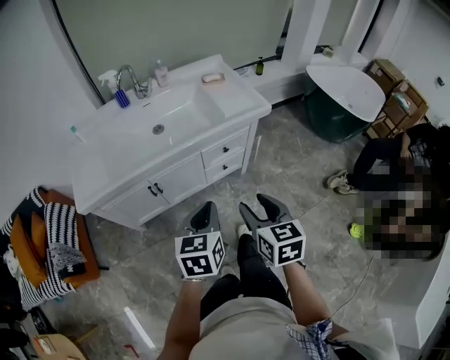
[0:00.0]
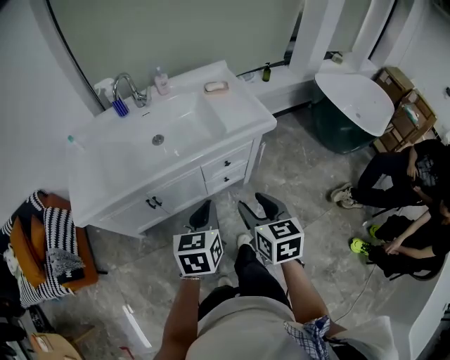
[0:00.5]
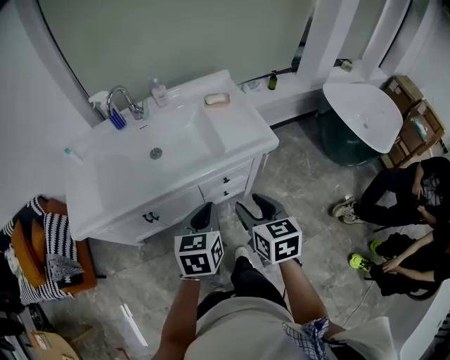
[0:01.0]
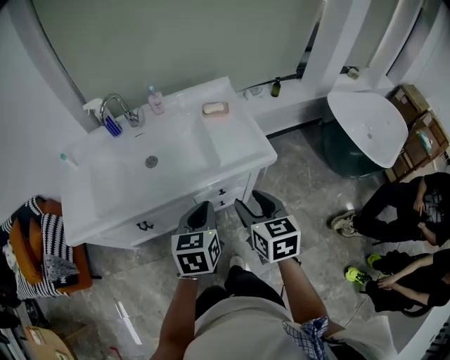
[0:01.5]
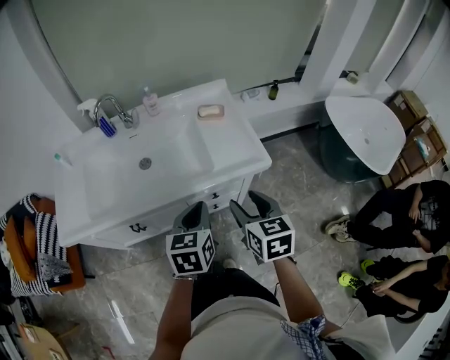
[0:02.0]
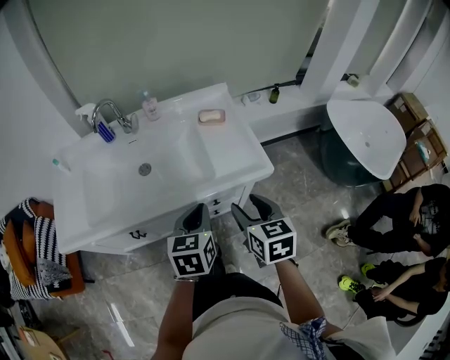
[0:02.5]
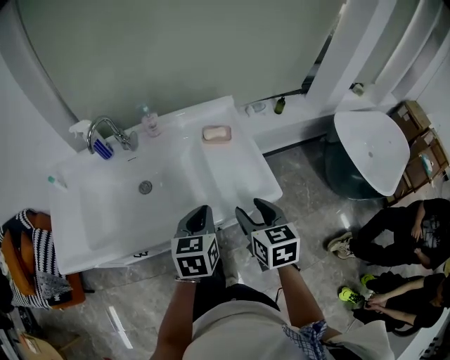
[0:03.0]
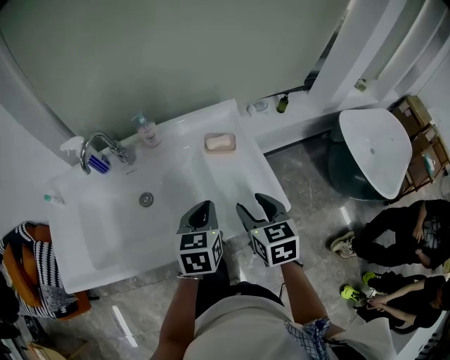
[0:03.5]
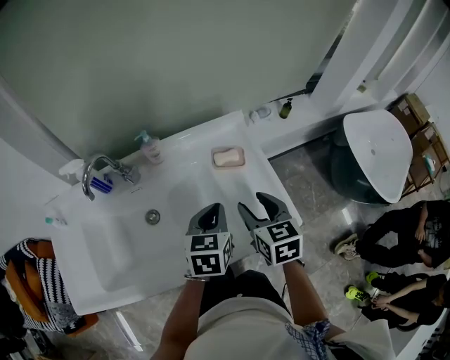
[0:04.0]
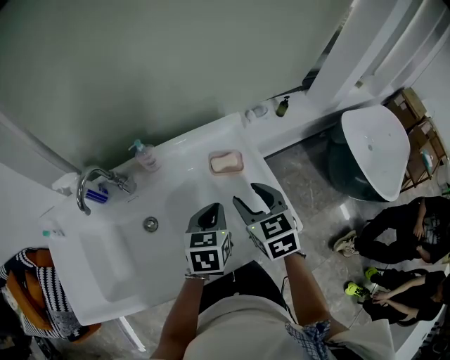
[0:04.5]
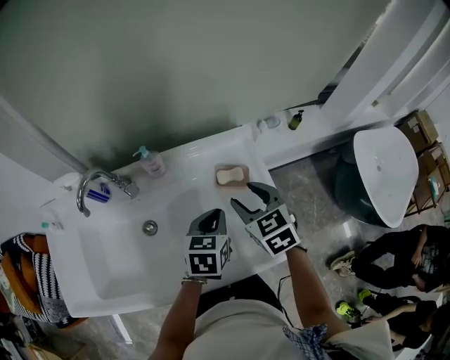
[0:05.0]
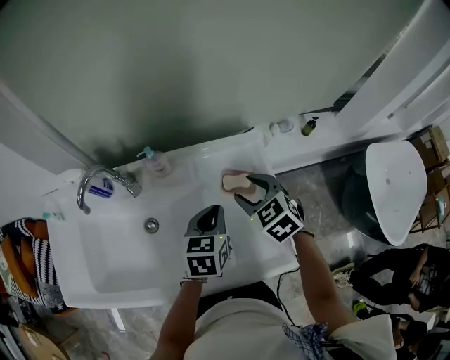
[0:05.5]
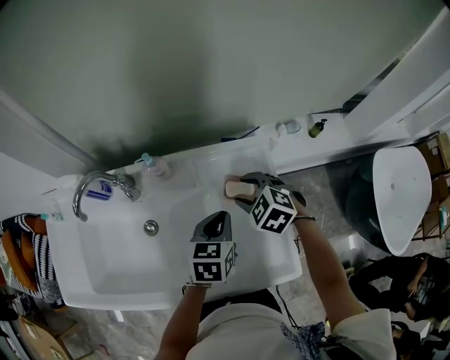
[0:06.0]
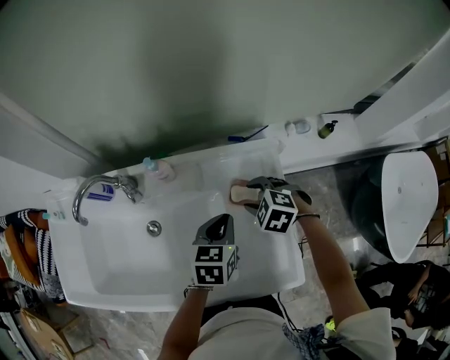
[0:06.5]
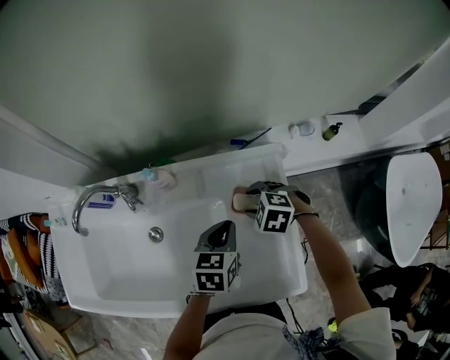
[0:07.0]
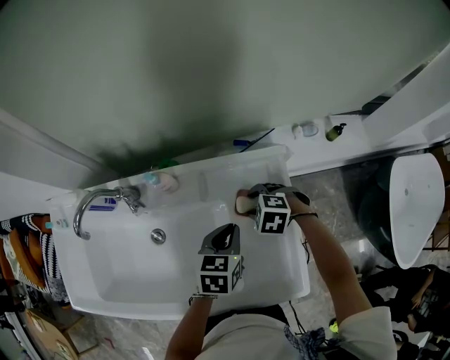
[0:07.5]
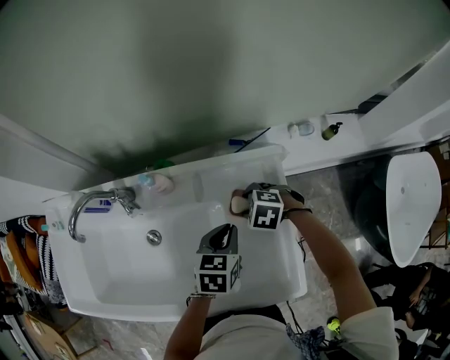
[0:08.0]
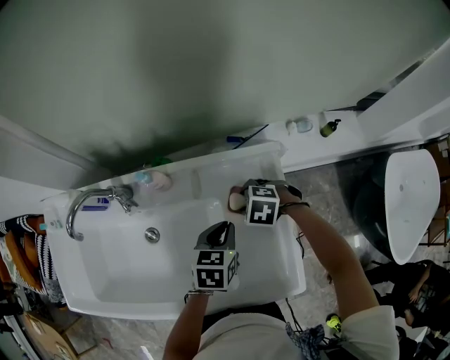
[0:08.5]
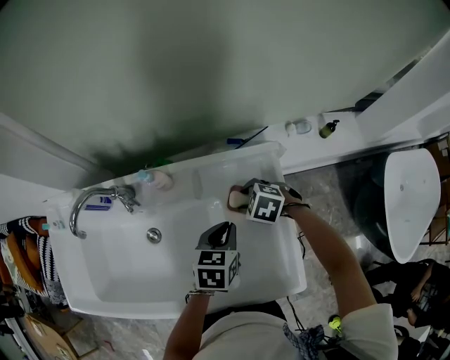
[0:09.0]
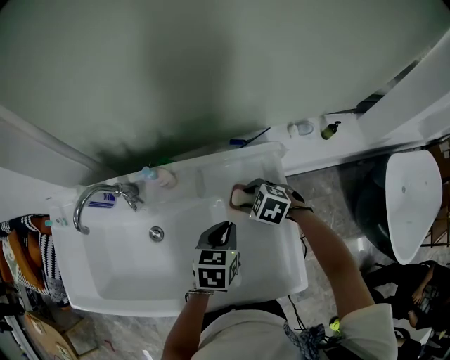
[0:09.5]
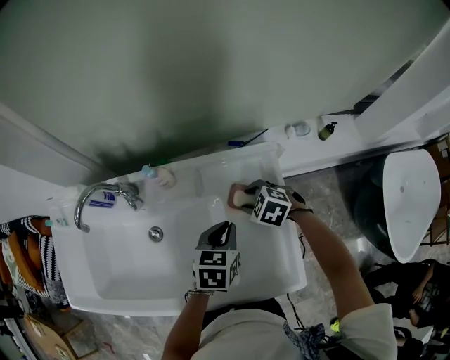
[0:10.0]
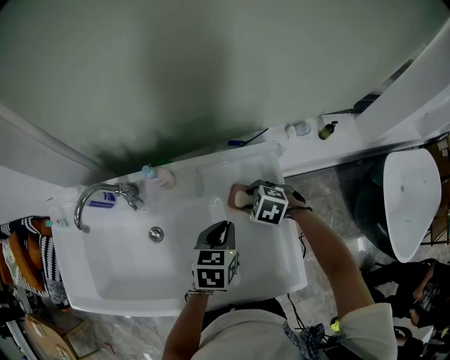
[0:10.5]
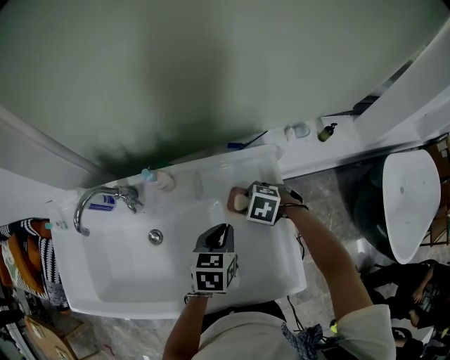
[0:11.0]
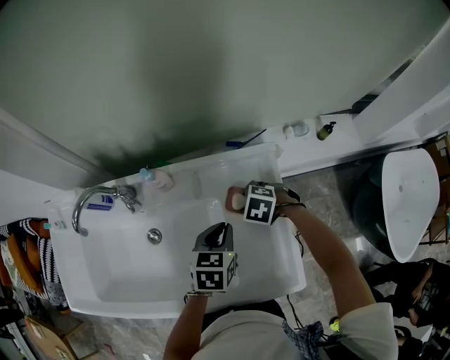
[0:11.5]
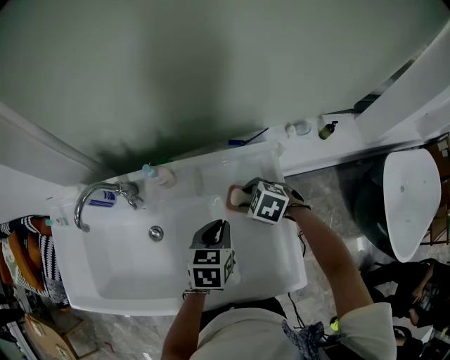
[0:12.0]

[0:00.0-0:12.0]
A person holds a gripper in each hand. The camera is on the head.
0:00.0 to 0:02.0: The right gripper goes roughly 25 cm forward. The left gripper is displaced forward and to the right by some 25 cm.
0:02.0 to 0:04.0: The grippers both shift forward by about 25 cm.
0:04.0 to 0:06.0: The left gripper shifts about 10 cm forward. Meanwhile the right gripper shifts about 20 cm forward and downward, and rolls counterclockwise, seen from behind, by about 50 degrees.
0:06.0 to 0:08.0: The right gripper shifts roughly 10 cm downward, and turns by about 20 degrees; the left gripper ends up roughly 5 cm from where it was.
0:08.0 to 0:12.0: The grippers move only a little.

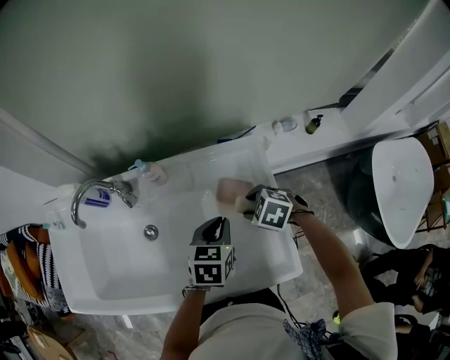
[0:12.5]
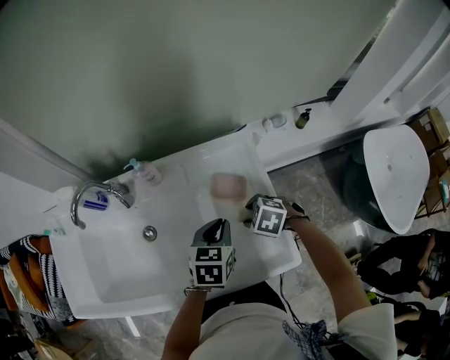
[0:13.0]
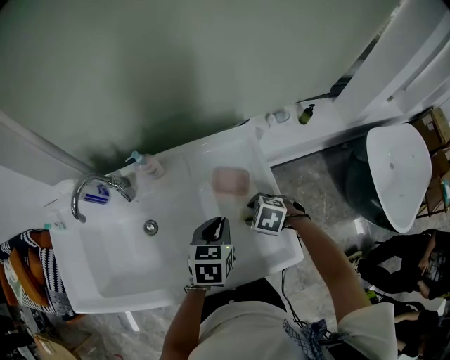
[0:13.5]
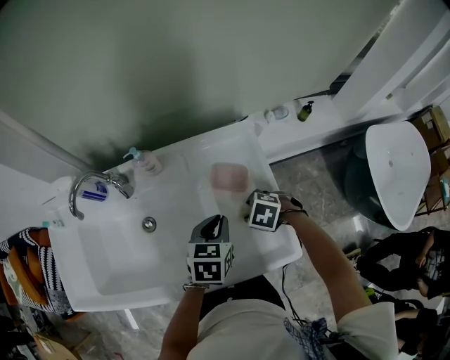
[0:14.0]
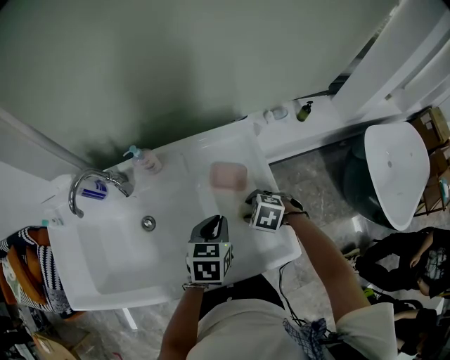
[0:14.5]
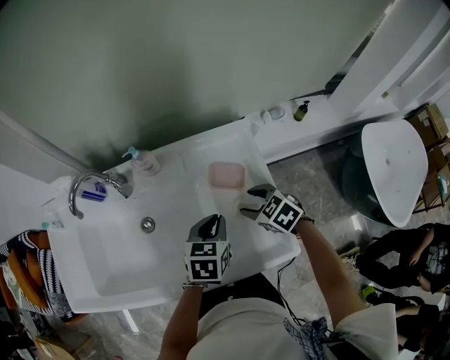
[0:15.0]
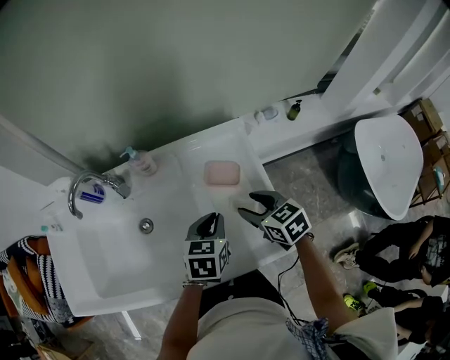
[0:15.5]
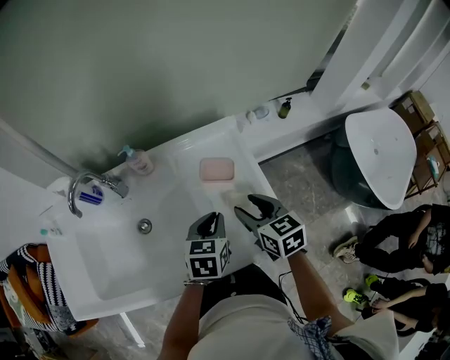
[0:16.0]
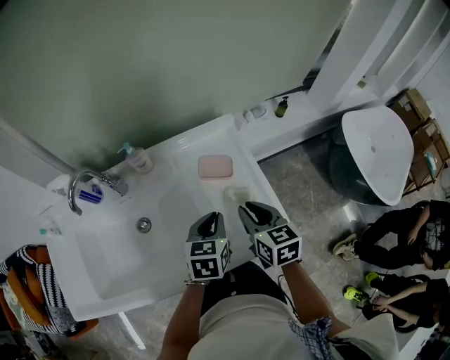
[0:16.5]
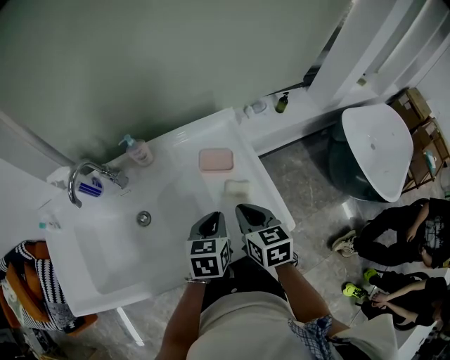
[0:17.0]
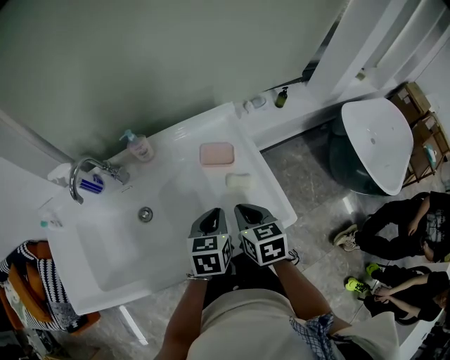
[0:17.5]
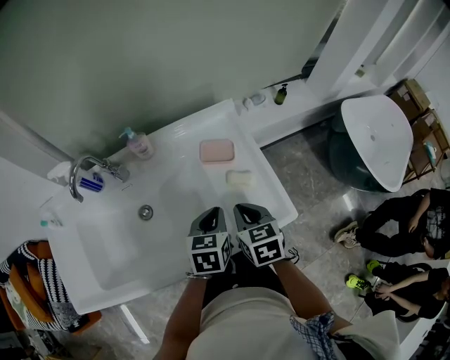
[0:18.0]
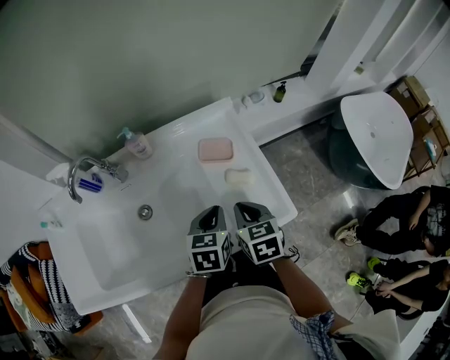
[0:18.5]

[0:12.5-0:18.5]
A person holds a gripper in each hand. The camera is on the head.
0:12.5 to 0:14.5: The right gripper moves backward, about 5 cm.
0:14.5 to 0:16.5: The right gripper heads upward, covering some 15 cm, angles its fingers upward, by some 40 degrees, and closes its fingers.
0:16.5 to 0:18.5: The right gripper changes place by approximately 5 cm, and closes.

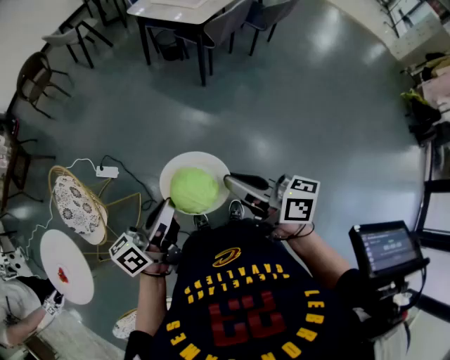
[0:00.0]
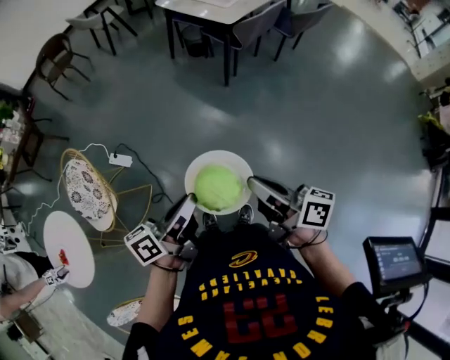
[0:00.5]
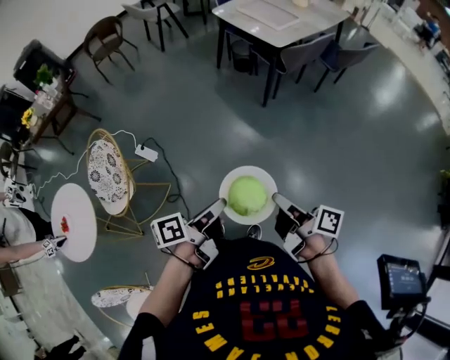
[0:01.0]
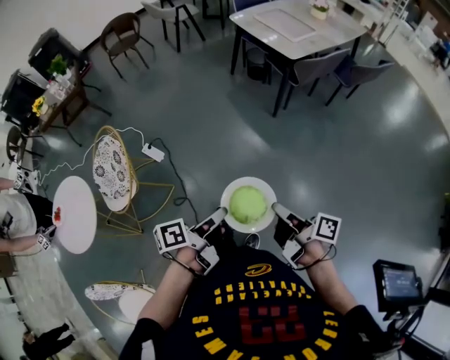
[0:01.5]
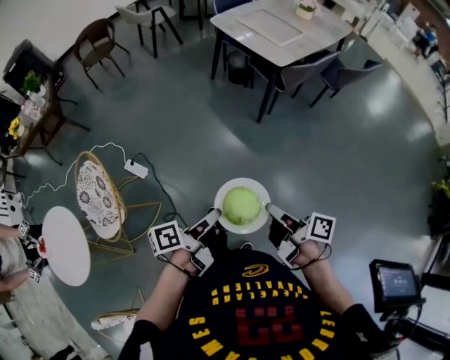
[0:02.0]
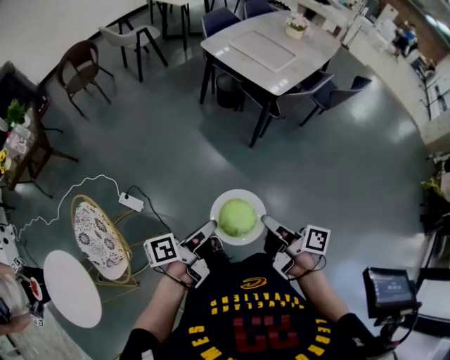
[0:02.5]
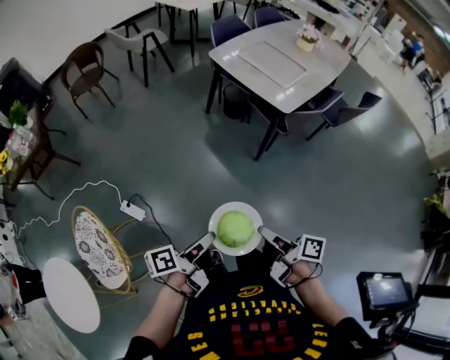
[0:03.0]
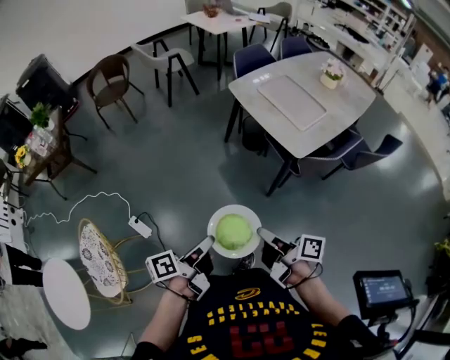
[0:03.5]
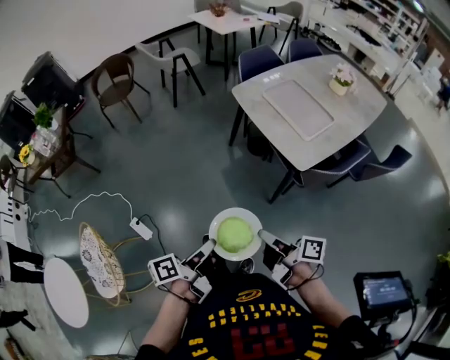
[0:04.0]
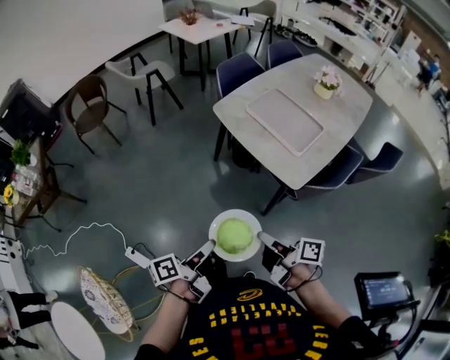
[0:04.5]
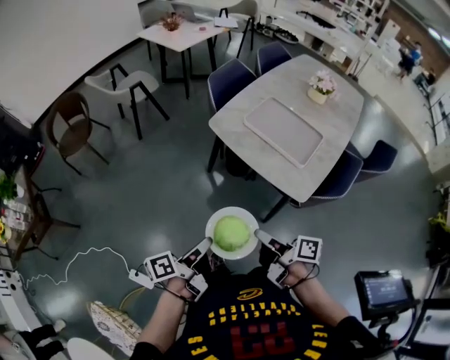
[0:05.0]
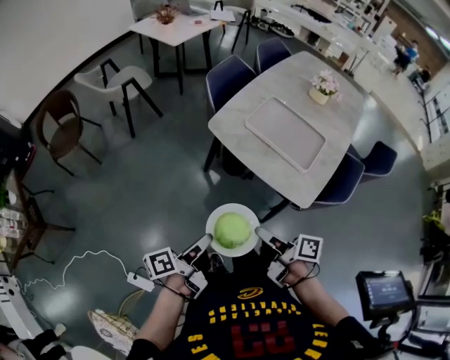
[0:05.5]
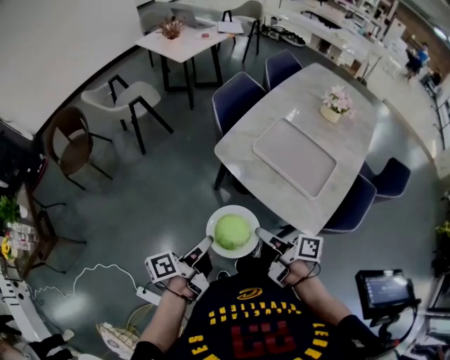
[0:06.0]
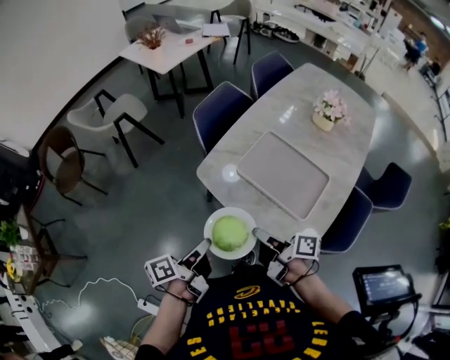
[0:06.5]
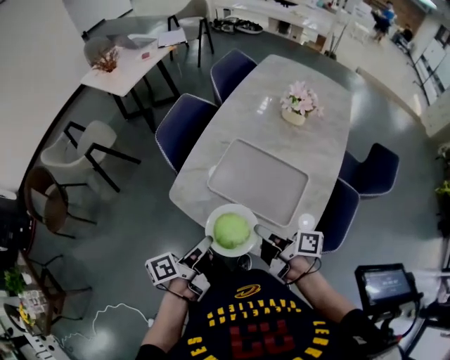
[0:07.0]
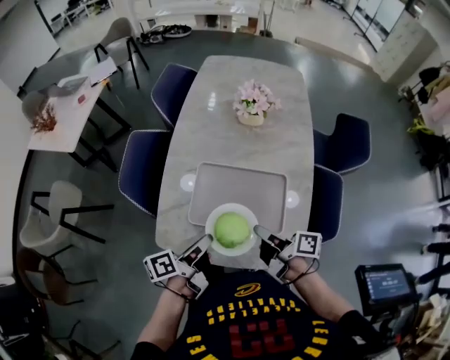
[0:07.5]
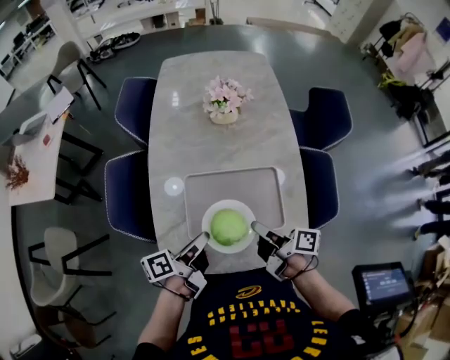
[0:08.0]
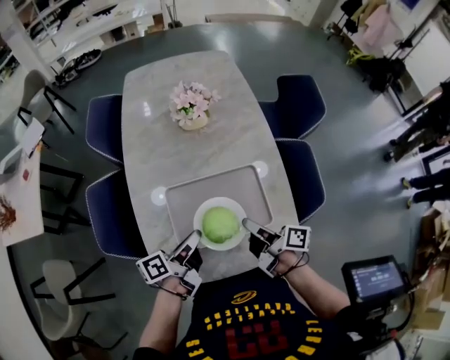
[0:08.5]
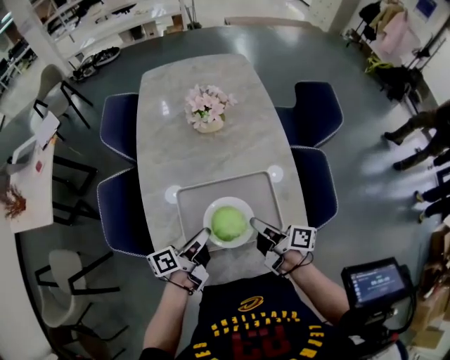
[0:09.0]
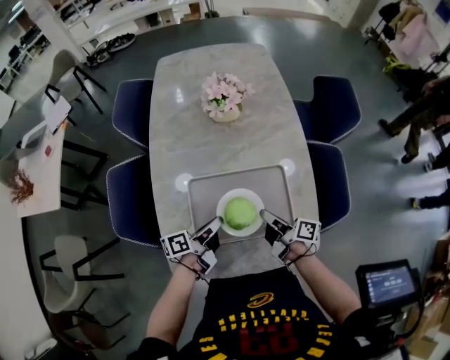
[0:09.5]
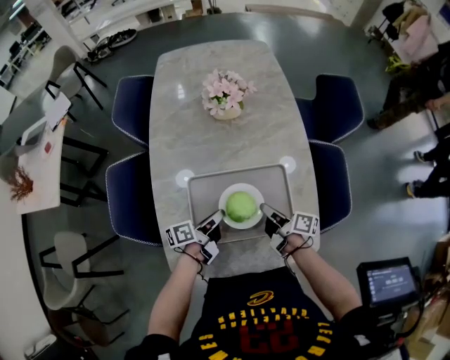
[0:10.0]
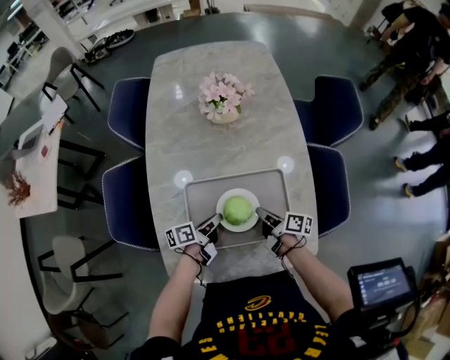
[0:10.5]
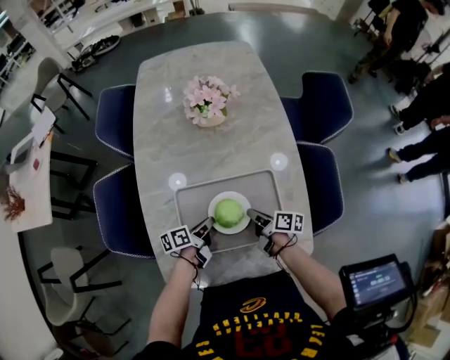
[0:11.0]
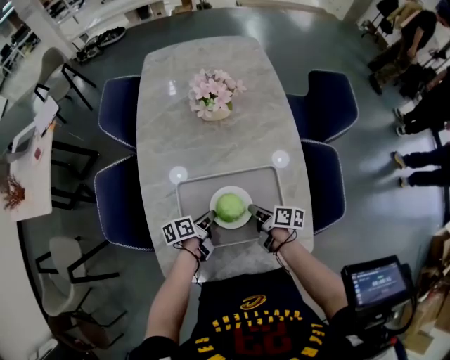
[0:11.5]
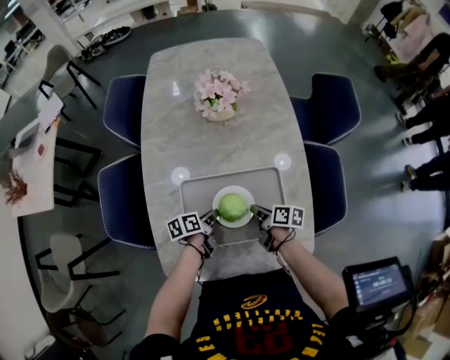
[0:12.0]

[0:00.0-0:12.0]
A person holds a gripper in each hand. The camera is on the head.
0:00.0 to 0:02.0: The right gripper moves roughly 20 cm, and turns by approximately 30 degrees.
0:02.0 to 0:04.0: The right gripper moves approximately 40 cm.
0:04.0 to 0:06.0: The right gripper moves some 40 cm.
0:06.0 to 0:08.0: The right gripper ends up about 35 cm from where it was, and swivels approximately 50 degrees.
0:08.0 to 0:10.0: The right gripper heads downward, covering about 10 cm.
0:10.0 to 0:12.0: The right gripper goes approximately 5 cm downward, and swivels some 20 degrees.
